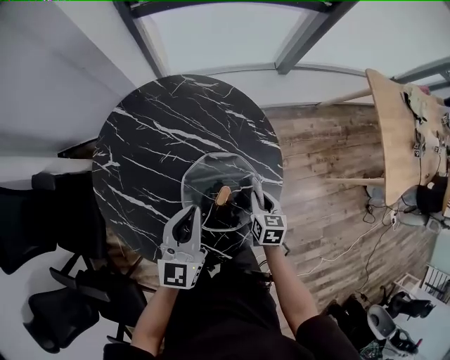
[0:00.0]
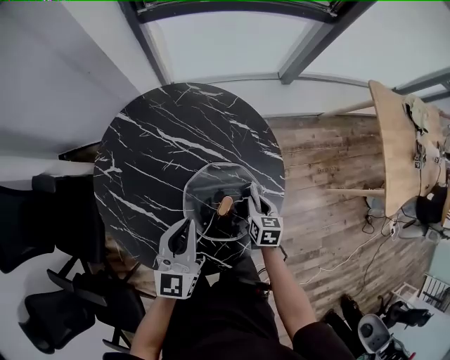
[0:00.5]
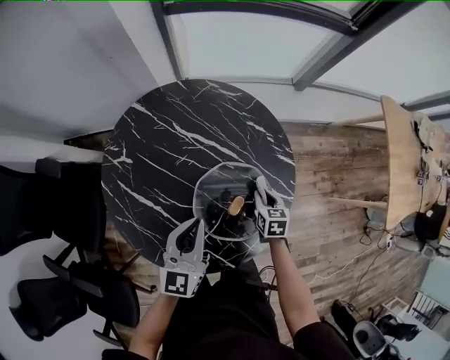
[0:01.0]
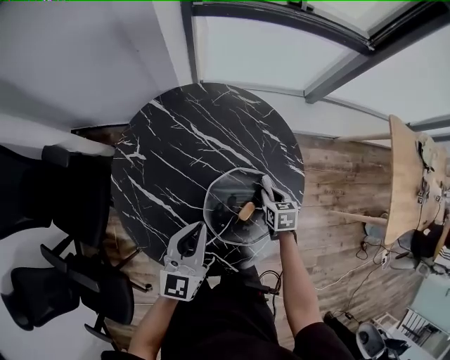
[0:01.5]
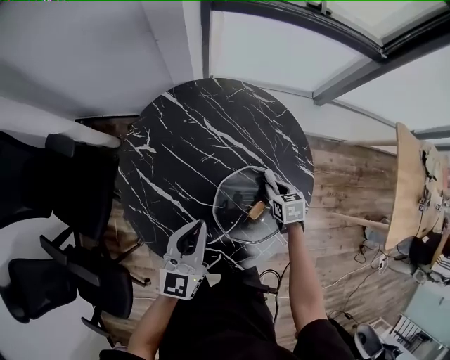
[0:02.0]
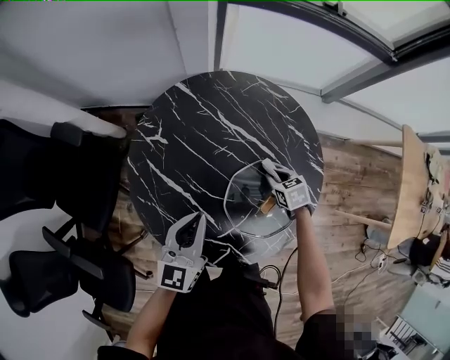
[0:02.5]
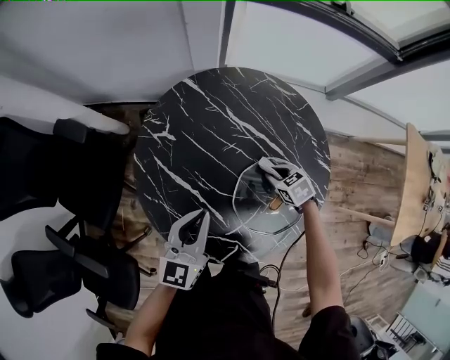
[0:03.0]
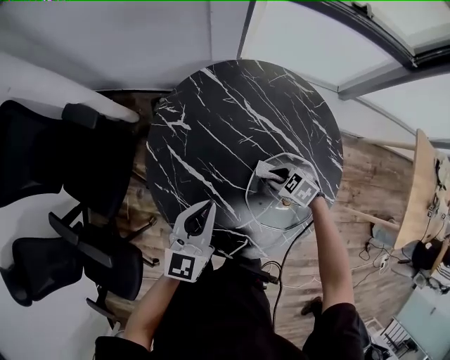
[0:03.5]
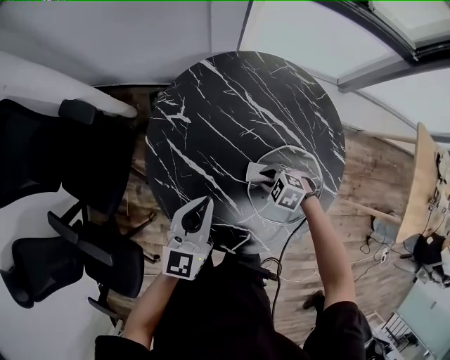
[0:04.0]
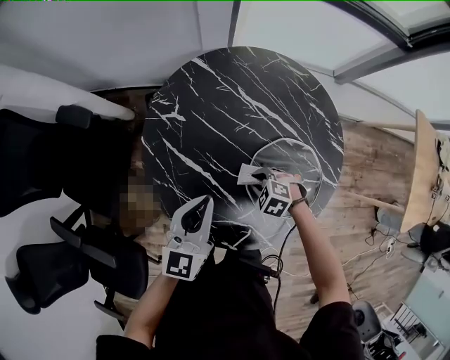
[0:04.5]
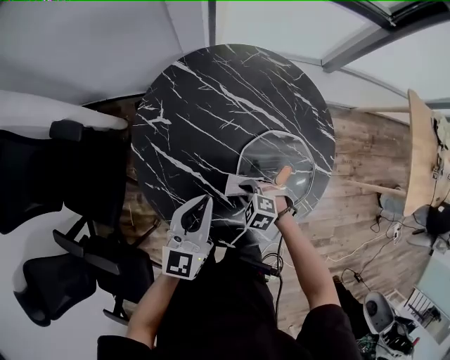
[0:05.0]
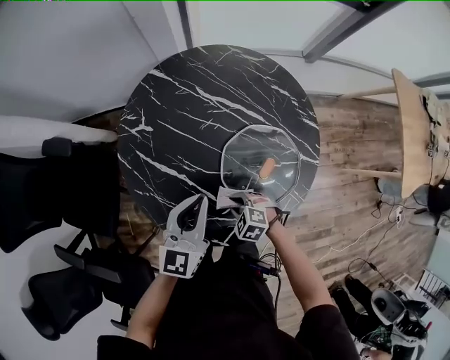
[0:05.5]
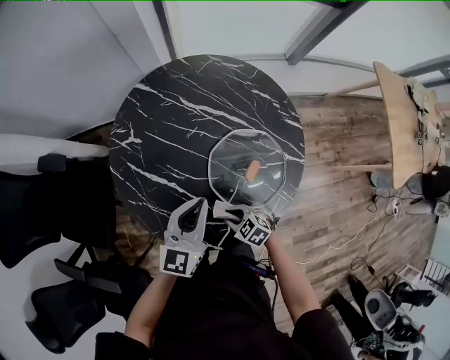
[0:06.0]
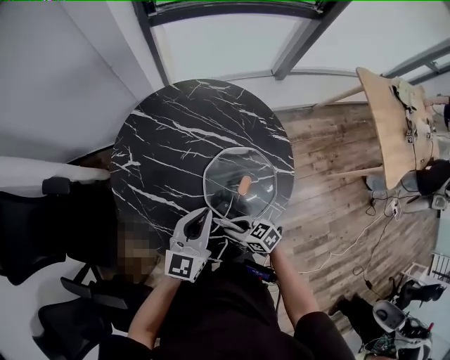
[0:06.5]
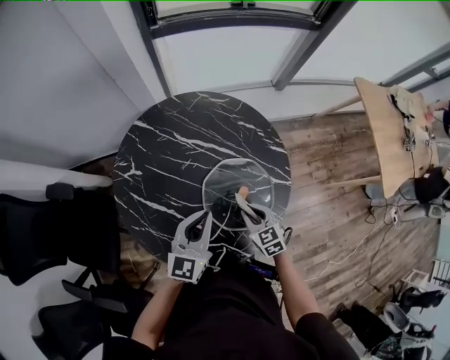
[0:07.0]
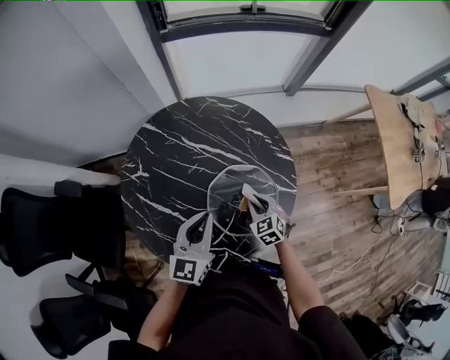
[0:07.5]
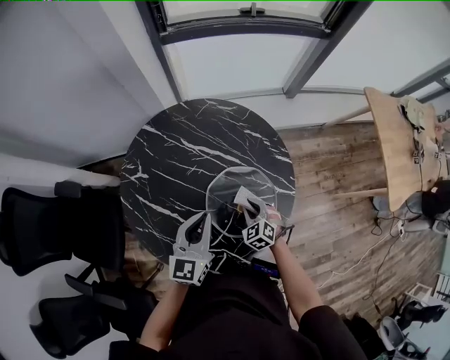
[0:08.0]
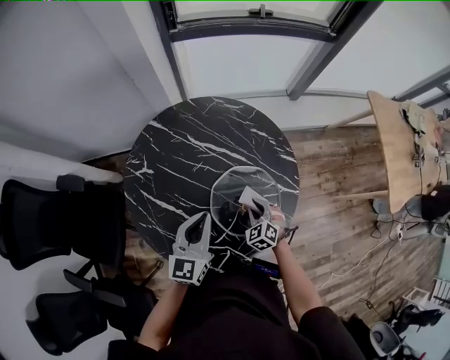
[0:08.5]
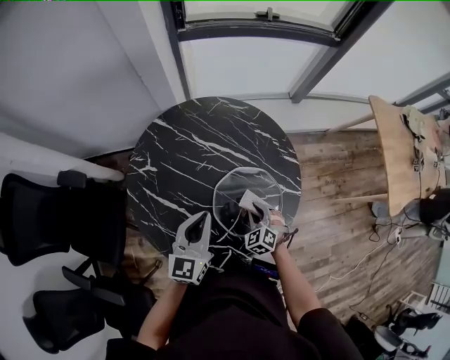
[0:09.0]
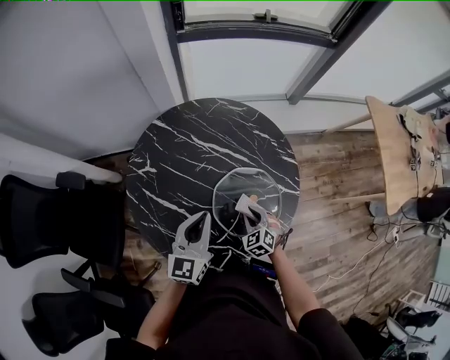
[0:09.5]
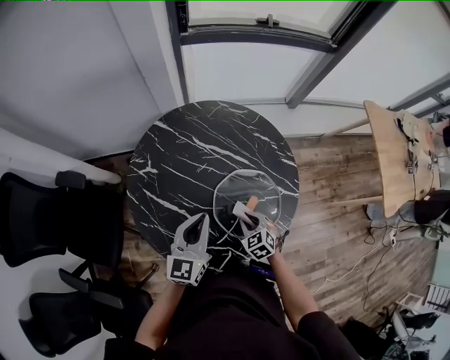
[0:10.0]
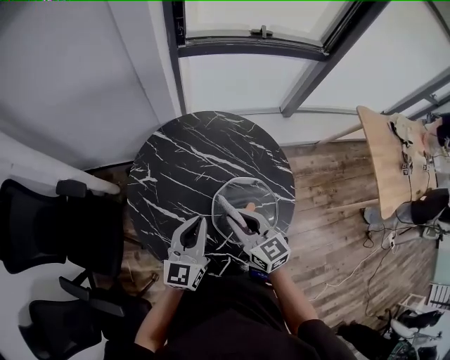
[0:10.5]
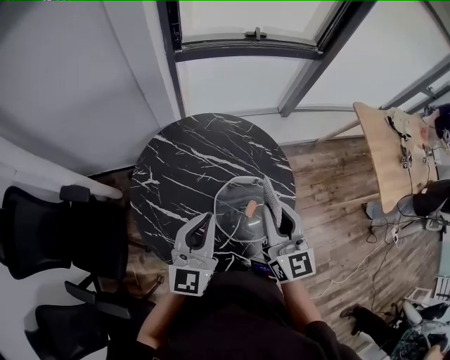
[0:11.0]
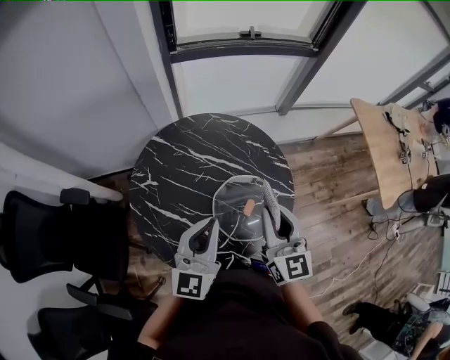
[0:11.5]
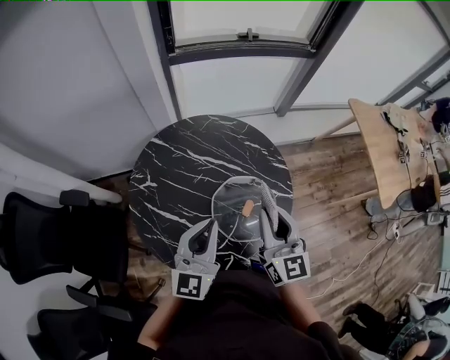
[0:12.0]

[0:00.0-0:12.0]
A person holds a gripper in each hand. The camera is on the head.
0:00.0 to 0:02.0: The left gripper is displaced to the left by approximately 10 cm; the right gripper moves forward and to the left, approximately 15 cm, and swivels roughly 30 degrees.
0:02.0 to 0:04.0: The left gripper moves approximately 10 cm. The right gripper ends up some 20 cm from where it was, and rolls counterclockwise, seen from behind, by roughly 60 degrees.
0:04.0 to 0:06.0: The right gripper heads backward and to the left, covering about 15 cm, and swivels some 30 degrees; the left gripper goes approximately 10 cm to the right and backward.
0:06.0 to 0:08.0: The left gripper shifts by about 10 cm. Meanwhile the right gripper ends up approximately 20 cm from where it was, and rotates about 40 degrees.
0:08.0 to 0:10.0: The right gripper shifts roughly 5 cm backward, while the left gripper heads to the left, covering roughly 5 cm.
0:10.0 to 0:12.0: The right gripper shifts approximately 35 cm upward, and angles its fingers upward, by roughly 50 degrees; the left gripper goes some 10 cm upward.

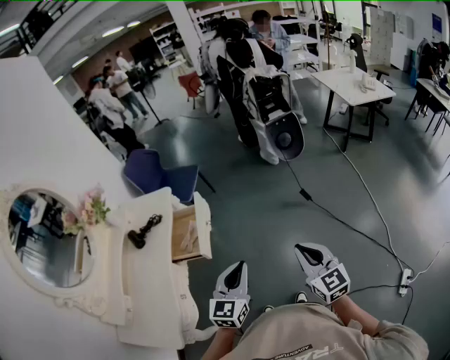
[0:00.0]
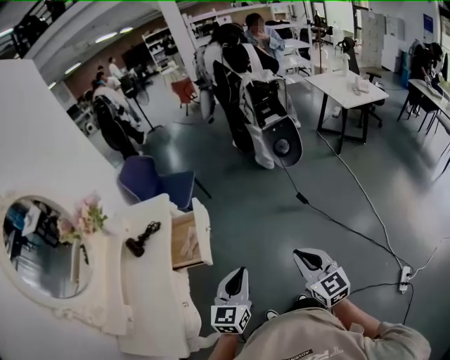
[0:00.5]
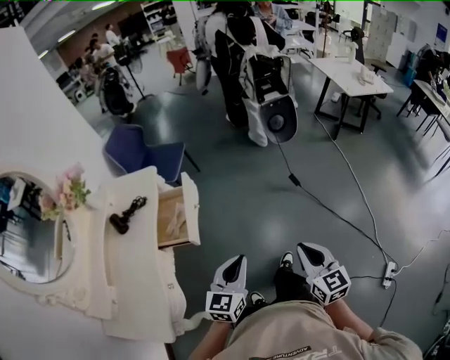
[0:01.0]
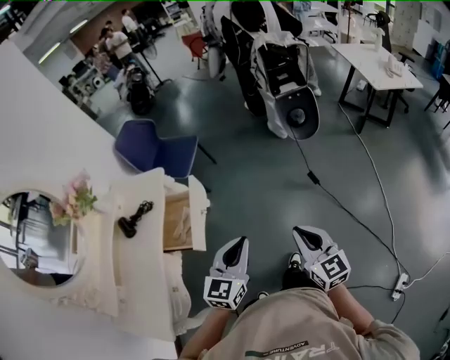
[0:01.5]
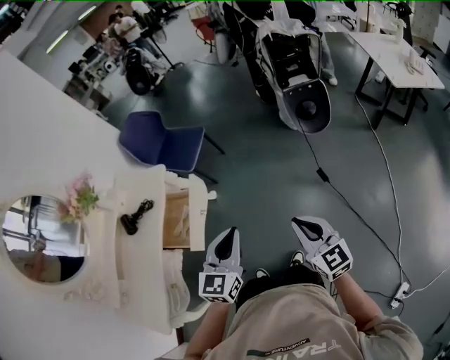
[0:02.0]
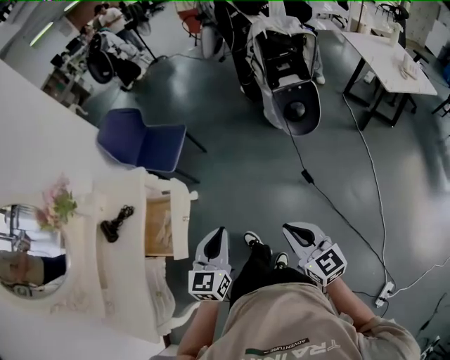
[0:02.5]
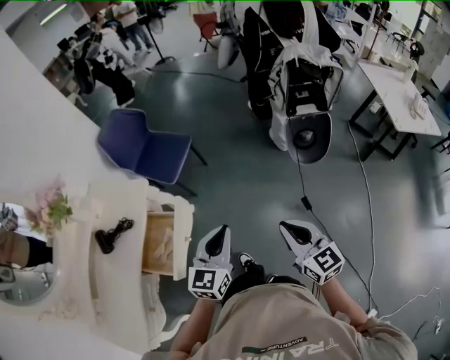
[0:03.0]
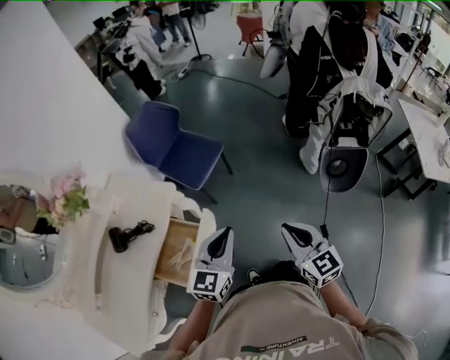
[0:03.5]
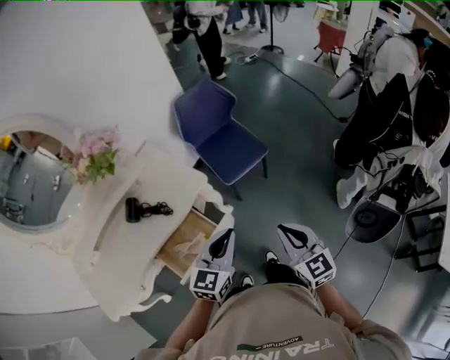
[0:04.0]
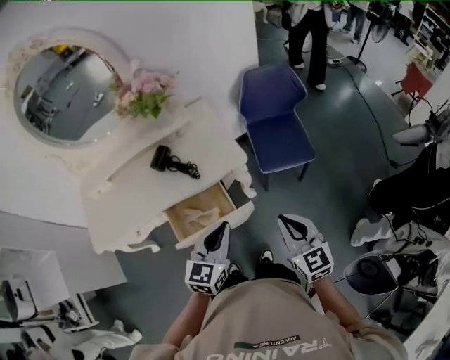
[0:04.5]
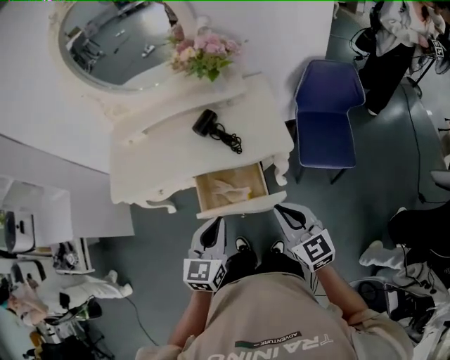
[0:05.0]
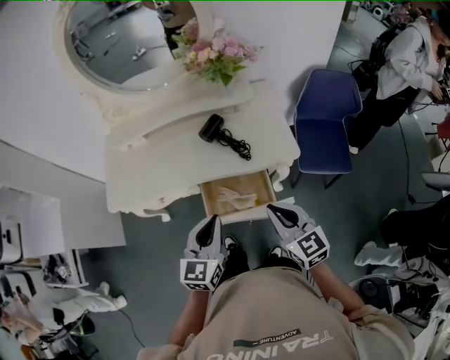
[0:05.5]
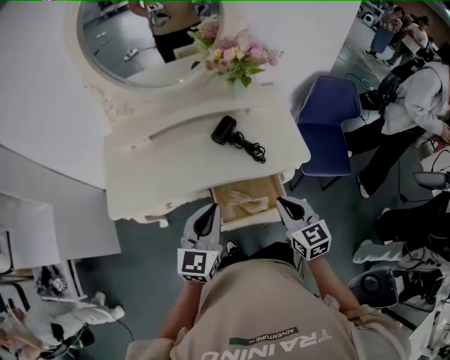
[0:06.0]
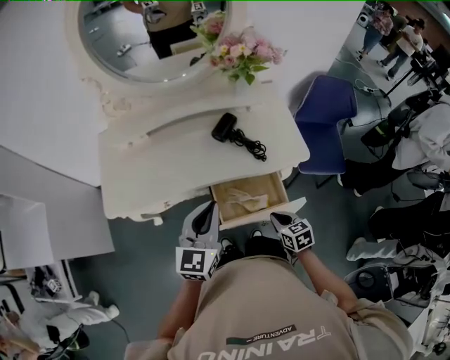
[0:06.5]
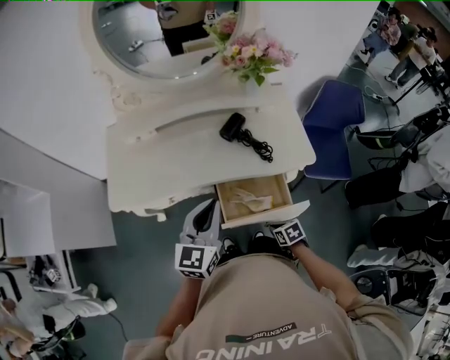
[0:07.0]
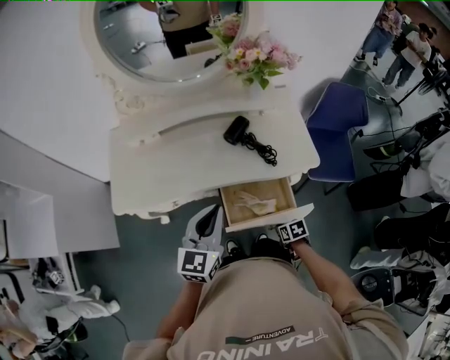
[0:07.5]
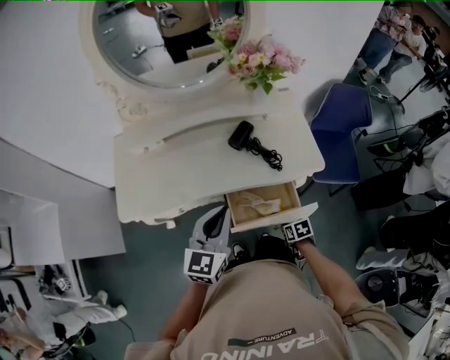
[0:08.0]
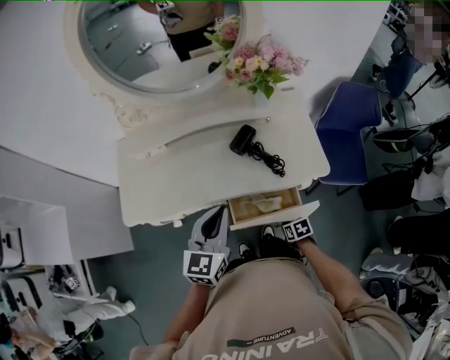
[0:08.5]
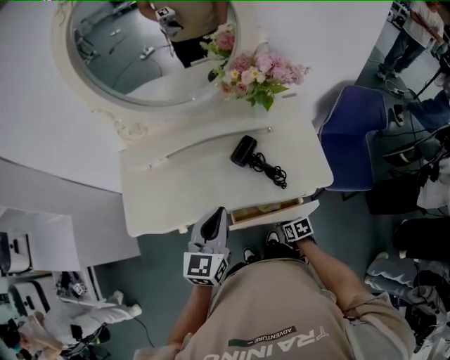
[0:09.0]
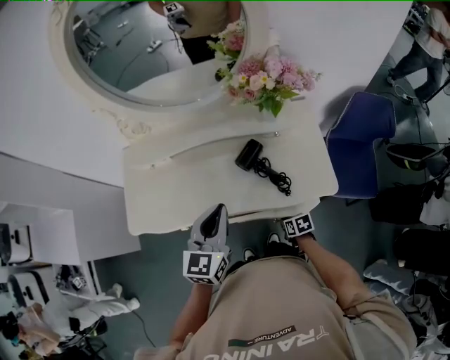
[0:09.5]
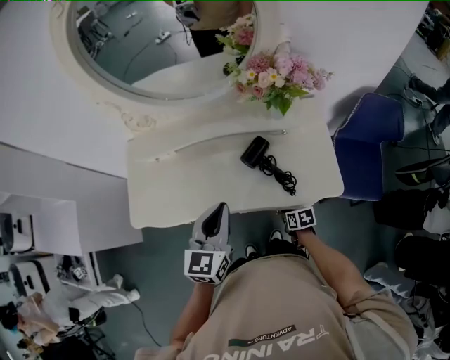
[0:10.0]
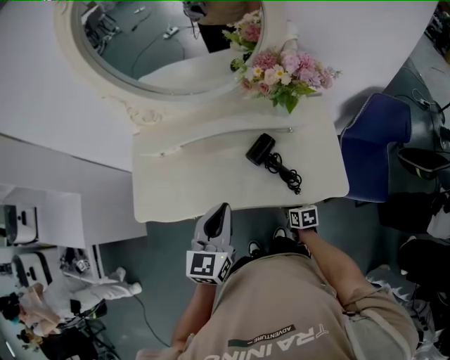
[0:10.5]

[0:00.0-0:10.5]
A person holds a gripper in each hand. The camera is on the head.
0:00.0 to 0:02.0: Both grippers move forward, roughly 20 cm.
0:02.0 to 0:04.0: The left gripper ends up some 35 cm from where it was, and changes its angle by roughly 30 degrees, while the right gripper moves about 40 cm, and turns by some 30 degrees.
0:04.0 to 0:06.5: The left gripper moves approximately 35 cm, and rotates some 40 degrees, while the right gripper changes place by some 35 cm, and angles its fingers downward, by approximately 30 degrees.
0:06.5 to 0:08.5: The right gripper is displaced downward by about 10 cm, and rotates approximately 30 degrees; the left gripper heads forward, covering about 5 cm.
0:08.5 to 0:10.5: The left gripper moves forward, roughly 5 cm, while the right gripper heads forward, covering about 15 cm.

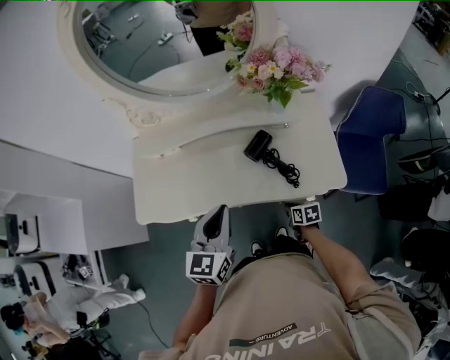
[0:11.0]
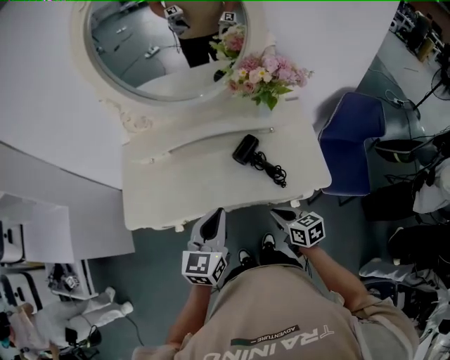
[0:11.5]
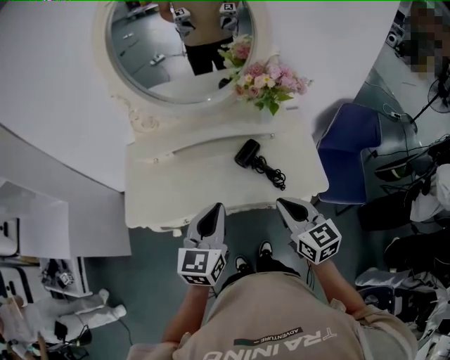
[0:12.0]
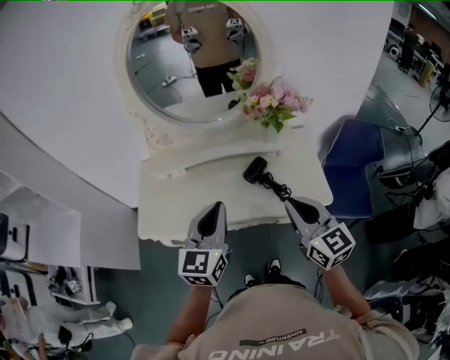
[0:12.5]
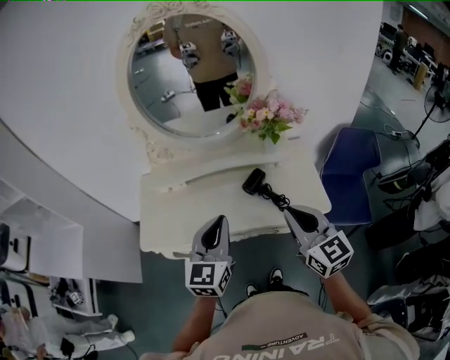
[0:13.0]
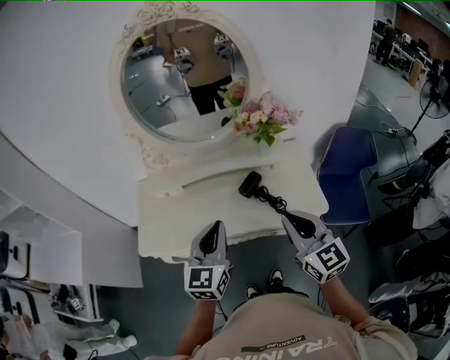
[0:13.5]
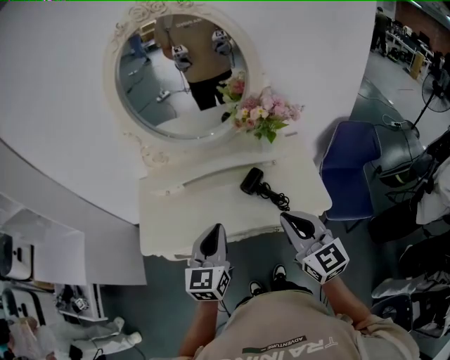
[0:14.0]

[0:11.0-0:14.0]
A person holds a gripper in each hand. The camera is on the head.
0:11.0 to 0:12.5: The left gripper shifts about 10 cm upward. The right gripper goes some 40 cm upward, and points its fingers about 50 degrees further upward.
0:12.5 to 0:14.0: There are only small adjustments of the grippers.

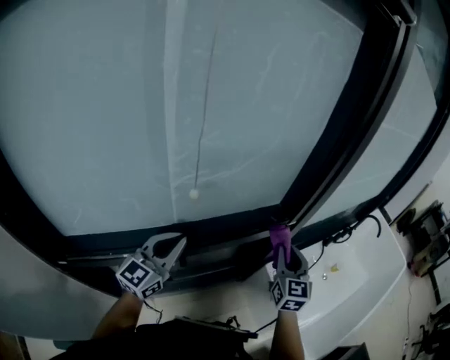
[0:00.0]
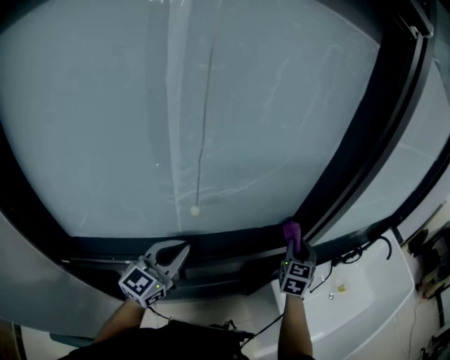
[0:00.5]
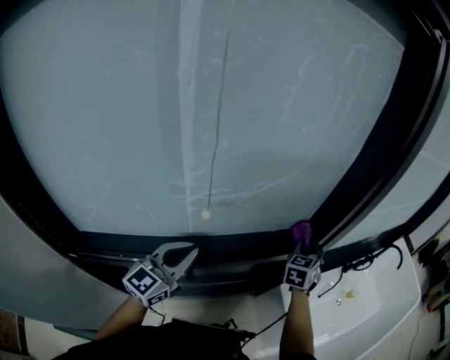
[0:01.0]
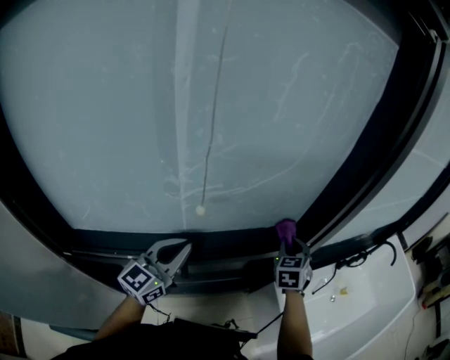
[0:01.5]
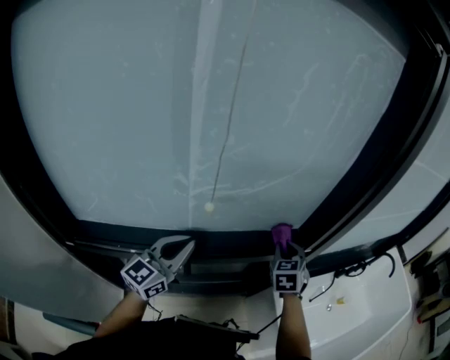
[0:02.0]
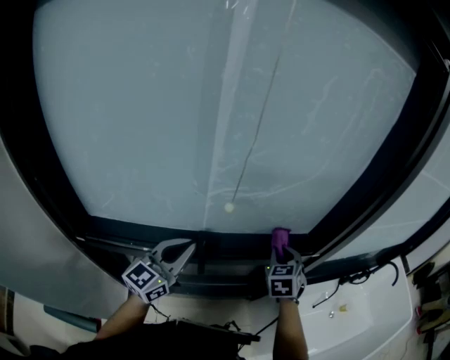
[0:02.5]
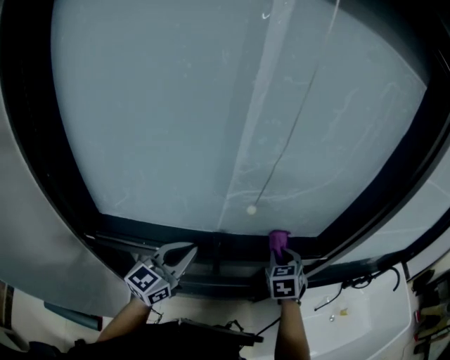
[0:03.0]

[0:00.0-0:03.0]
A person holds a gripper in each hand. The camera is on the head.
0:00.0 to 0:01.5: The right gripper heads forward and to the left, covering some 10 cm, and turns by approximately 30 degrees.
0:01.5 to 0:03.0: The left gripper shifts approximately 5 cm backward and to the left, while the right gripper shifts approximately 15 cm to the left and backward.
